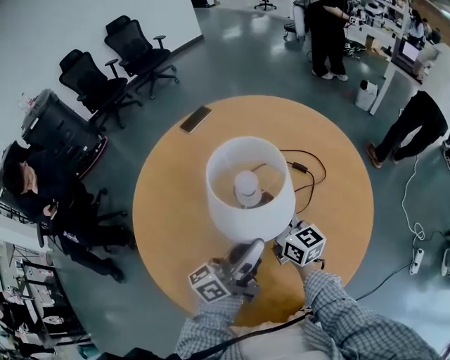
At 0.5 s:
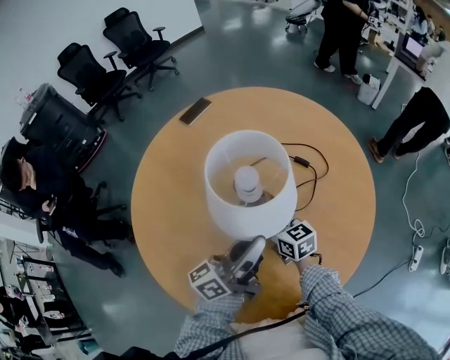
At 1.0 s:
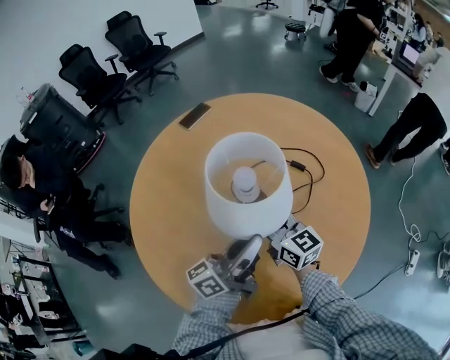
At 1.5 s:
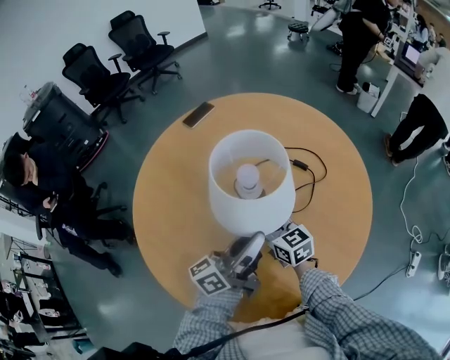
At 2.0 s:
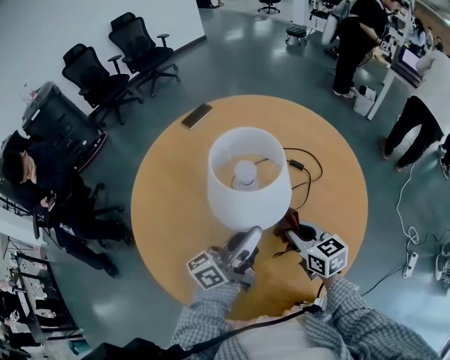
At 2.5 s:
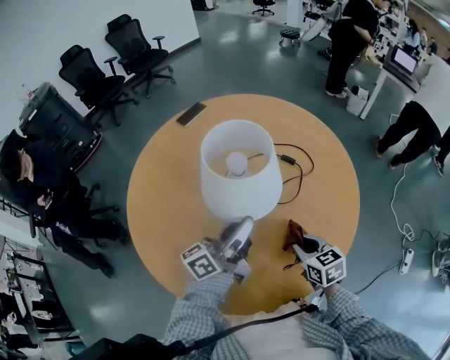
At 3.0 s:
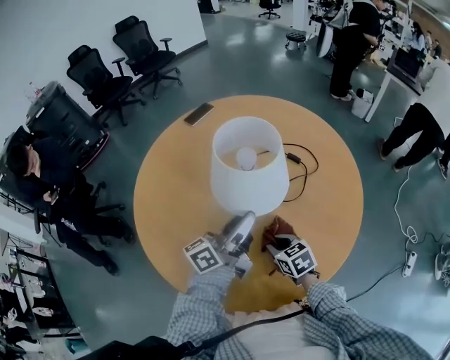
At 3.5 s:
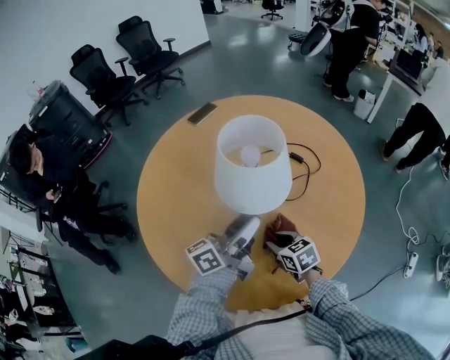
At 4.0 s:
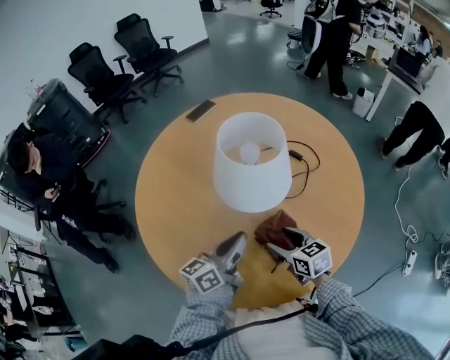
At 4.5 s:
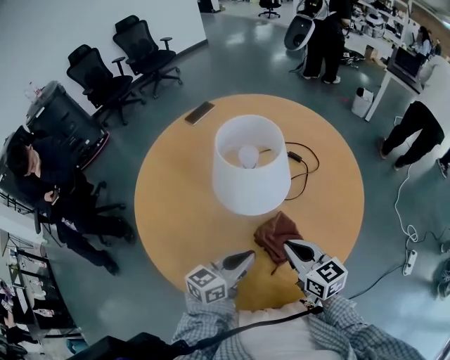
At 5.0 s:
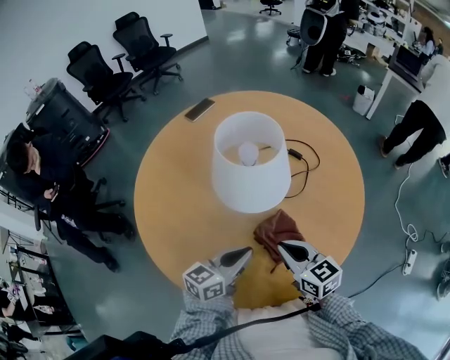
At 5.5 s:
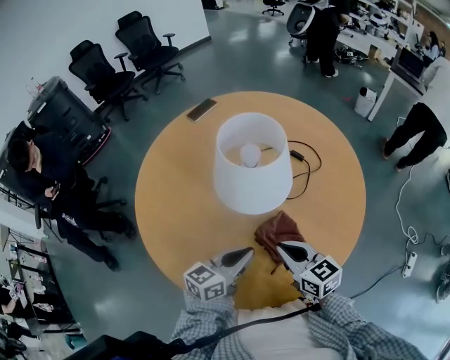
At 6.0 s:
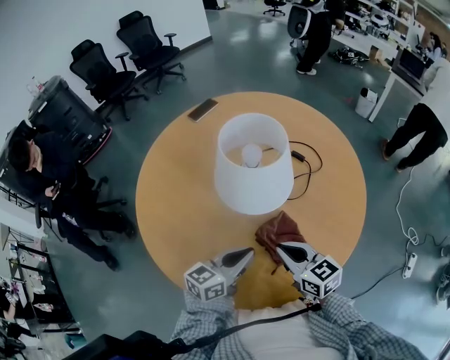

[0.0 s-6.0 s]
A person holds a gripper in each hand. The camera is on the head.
0.0 to 2.0 s: The right gripper swings up and down, some 10 cm each way, with 2 reversals, and changes its angle by approximately 20 degrees.
2.0 to 4.0 s: The right gripper travels backward by approximately 5 cm, and opens its fingers. Meanwhile the left gripper heads downward and backward, covering roughly 10 cm, rotates some 20 degrees, and opens, then closes again.
4.0 to 6.0 s: The right gripper goes some 5 cm upward, and closes up. Meanwhile the left gripper ends up roughly 5 cm from where it was, and changes its angle by roughly 20 degrees.

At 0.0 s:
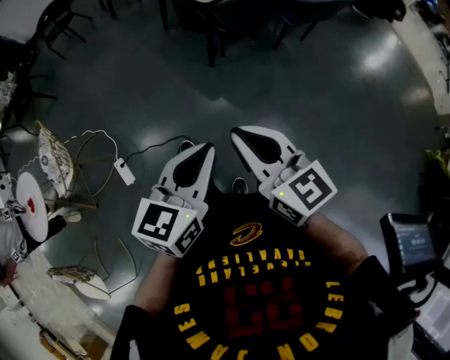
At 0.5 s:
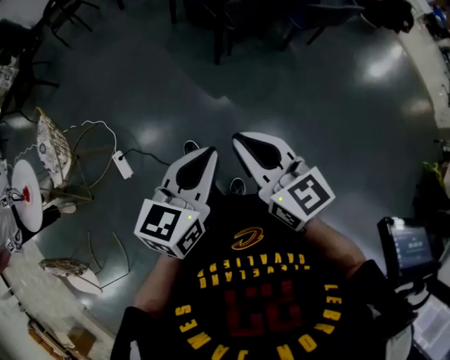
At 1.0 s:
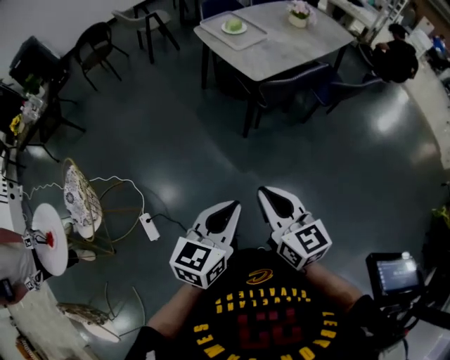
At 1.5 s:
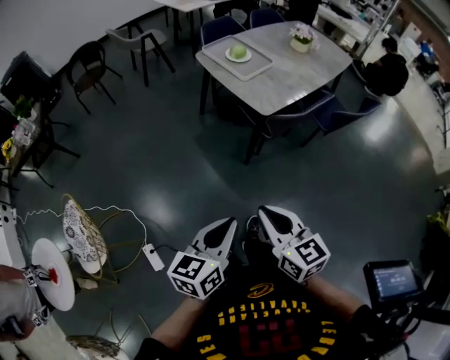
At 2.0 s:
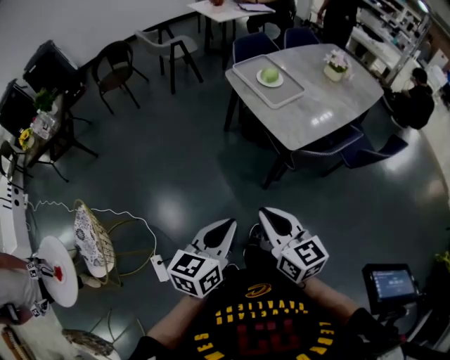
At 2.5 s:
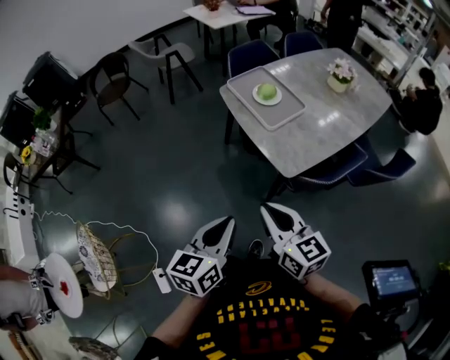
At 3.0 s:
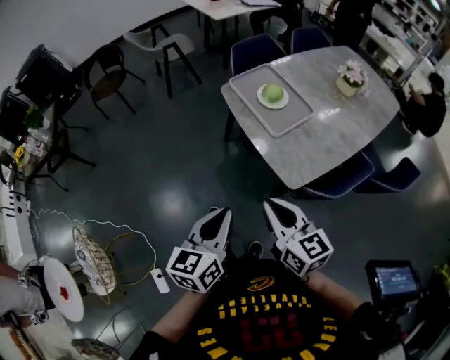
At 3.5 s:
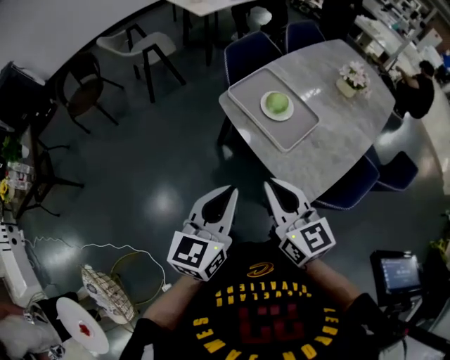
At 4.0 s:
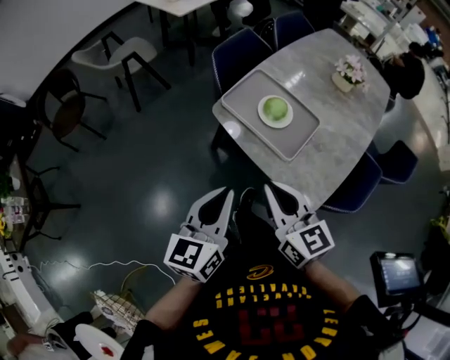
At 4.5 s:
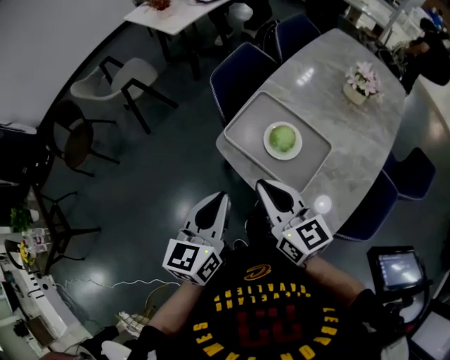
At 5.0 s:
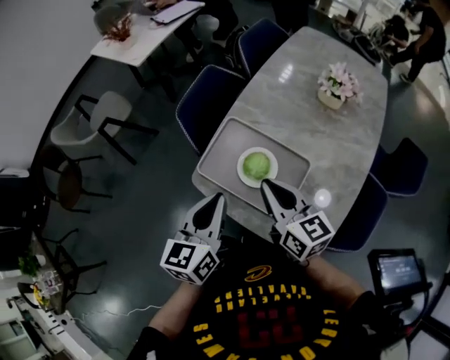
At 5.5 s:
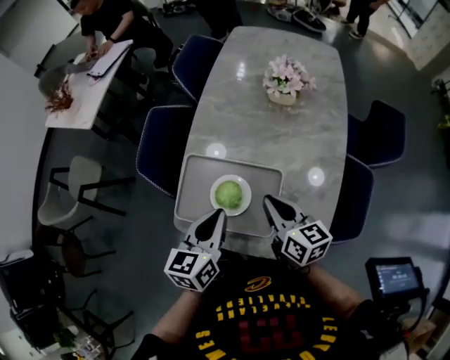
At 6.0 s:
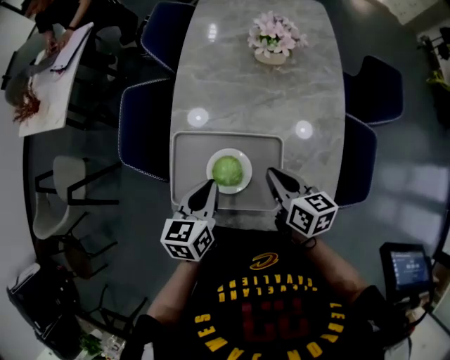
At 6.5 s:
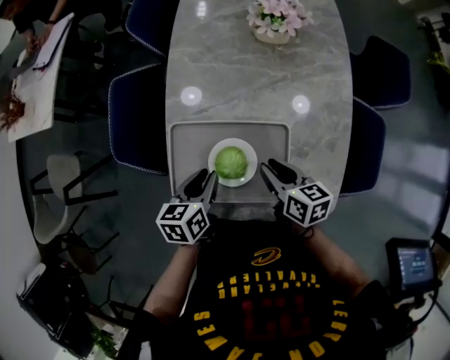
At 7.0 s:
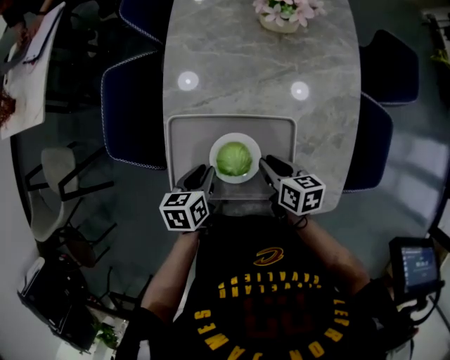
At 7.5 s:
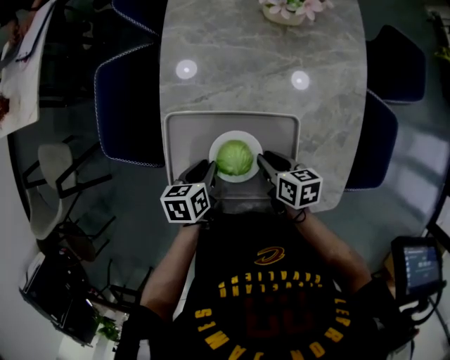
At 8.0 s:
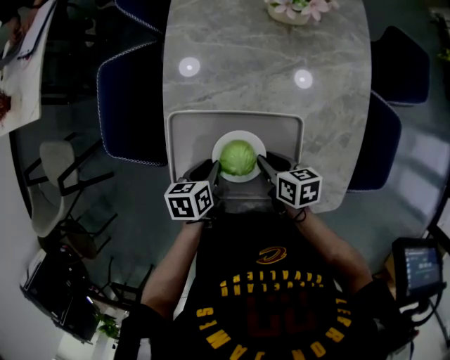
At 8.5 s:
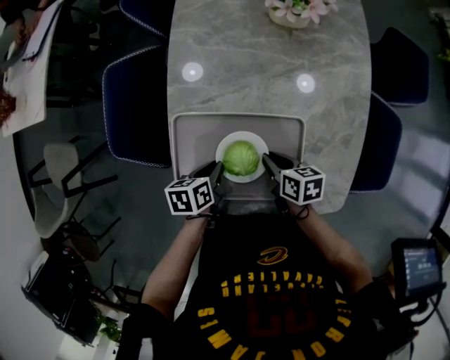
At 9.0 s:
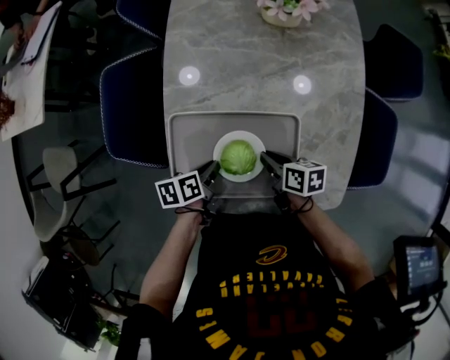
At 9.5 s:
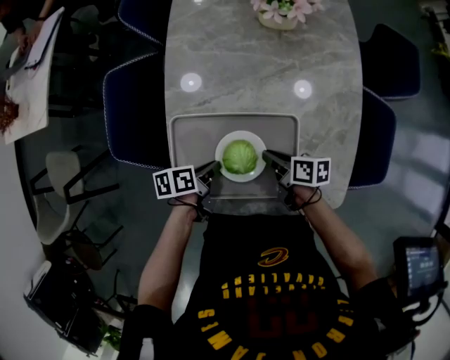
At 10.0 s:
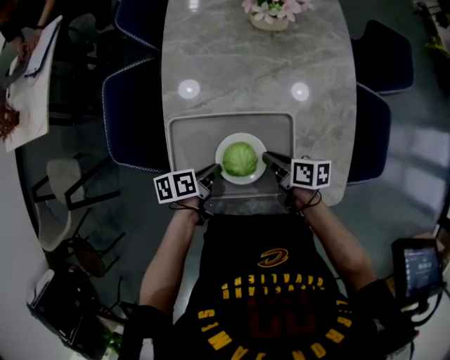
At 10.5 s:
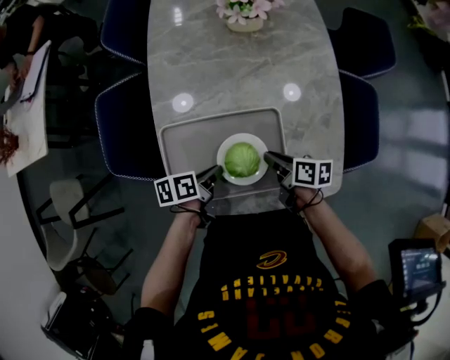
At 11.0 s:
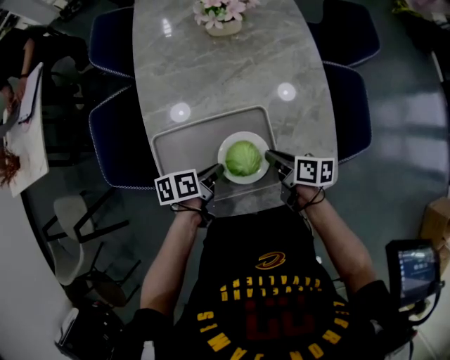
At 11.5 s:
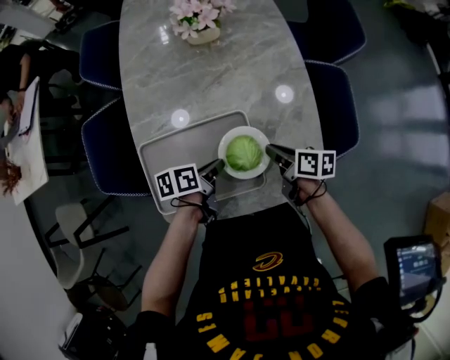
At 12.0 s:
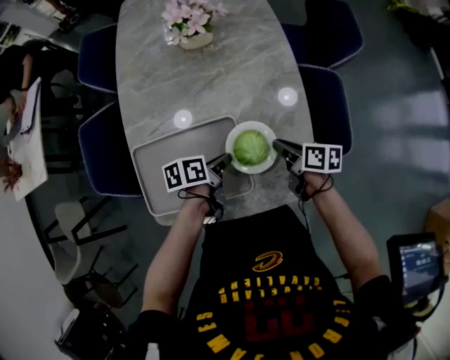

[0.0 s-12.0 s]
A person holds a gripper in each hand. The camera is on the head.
0.0 to 2.0 s: The pair of grippers is taken forward and to the left, approximately 40 cm.
2.0 to 4.0 s: The two grippers travel together, forward, about 50 cm.
4.0 to 6.0 s: The left gripper moves roughly 40 cm, and turns by about 40 degrees, while the right gripper shifts by about 35 cm, and changes its angle by some 50 degrees.
6.0 to 8.0 s: The grippers both shift downward by roughly 15 cm. The left gripper turns by some 30 degrees, and opens. The right gripper rotates about 20 degrees, and opens its fingers.
8.0 to 10.0 s: The left gripper swivels about 20 degrees.
10.0 to 12.0 s: Both grippers move to the right, about 20 cm.

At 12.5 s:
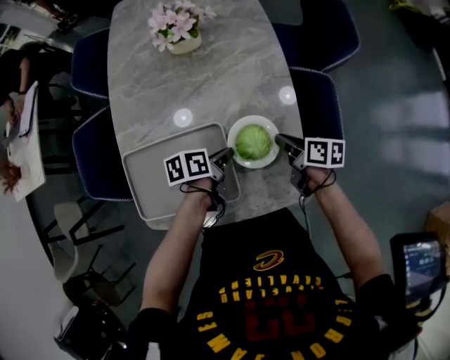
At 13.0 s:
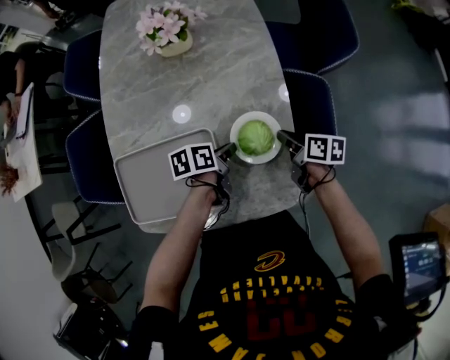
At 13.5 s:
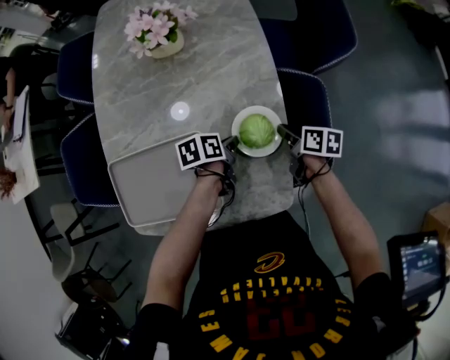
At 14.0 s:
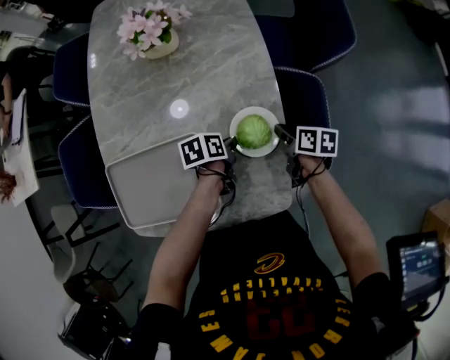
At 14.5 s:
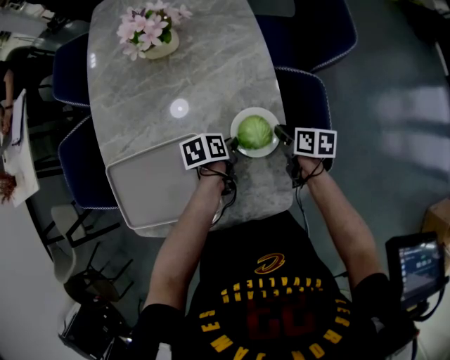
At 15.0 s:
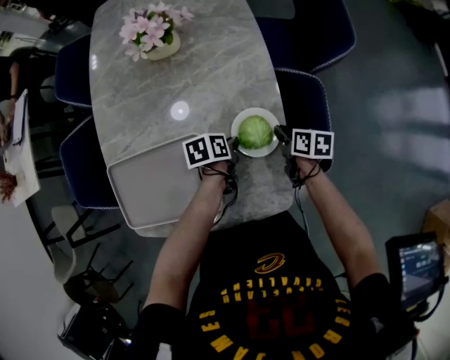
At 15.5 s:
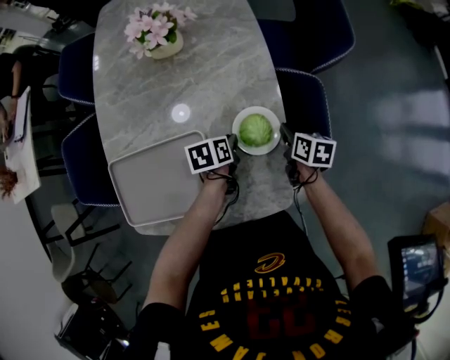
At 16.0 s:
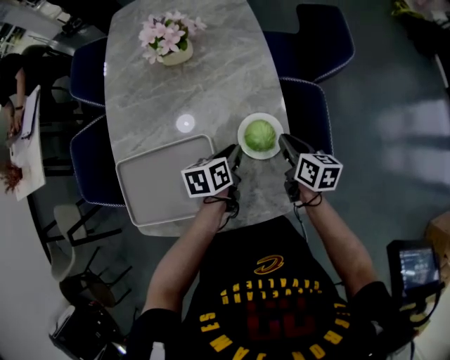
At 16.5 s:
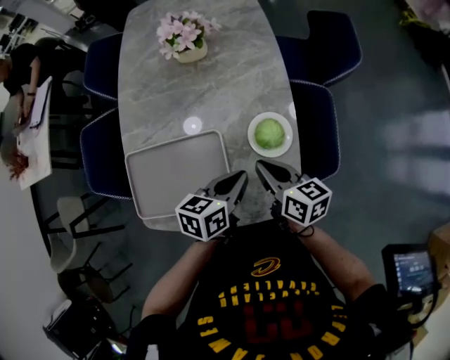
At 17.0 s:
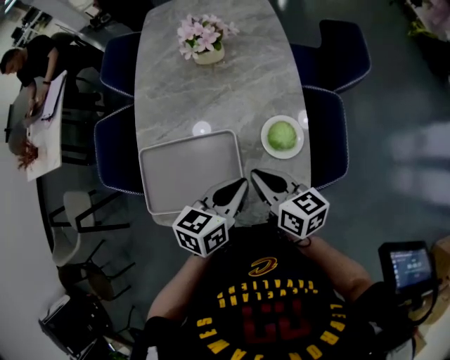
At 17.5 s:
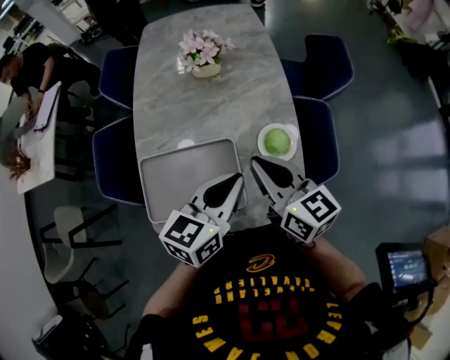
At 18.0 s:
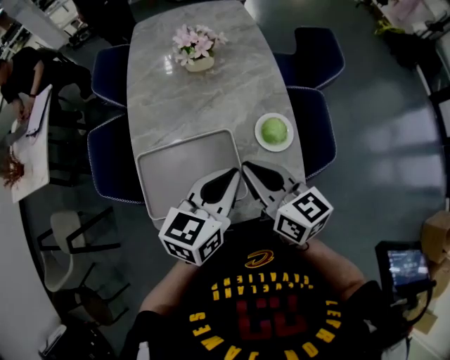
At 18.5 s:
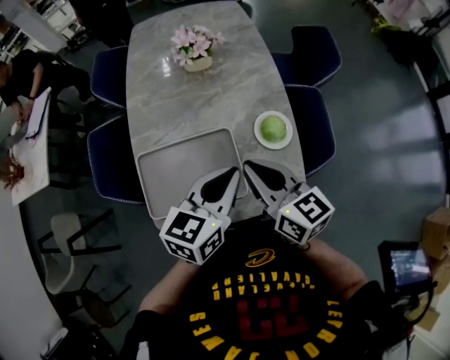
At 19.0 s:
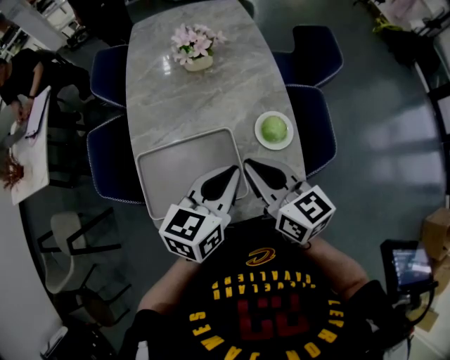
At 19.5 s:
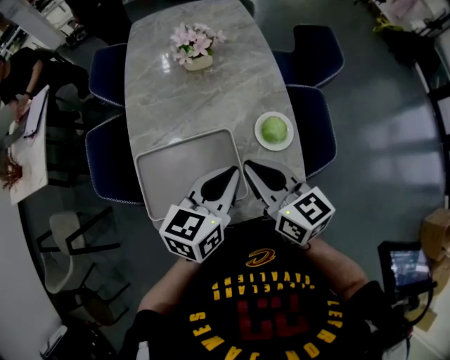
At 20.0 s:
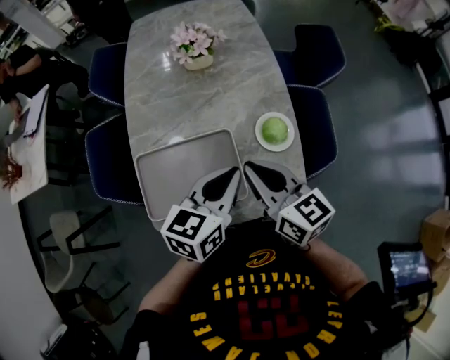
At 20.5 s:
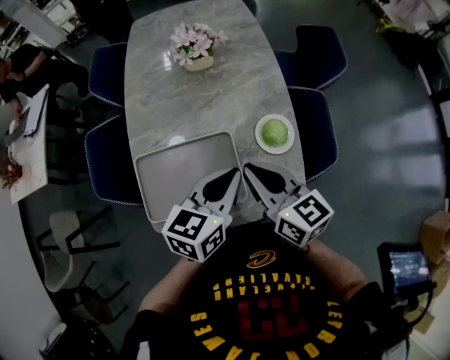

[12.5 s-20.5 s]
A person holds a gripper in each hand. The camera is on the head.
12.5 to 14.5 s: Both grippers travel together downward, to the right and forward, roughly 10 cm.
14.5 to 16.5 s: The right gripper goes some 25 cm upward, to the left and backward, and swivels some 30 degrees; the left gripper moves upward and backward, approximately 20 cm, and rotates some 30 degrees.
16.5 to 18.5 s: Both grippers move upward and to the left, some 15 cm. The left gripper turns by approximately 20 degrees.
18.5 to 20.5 s: The grippers stay close to where they were, moving slightly.

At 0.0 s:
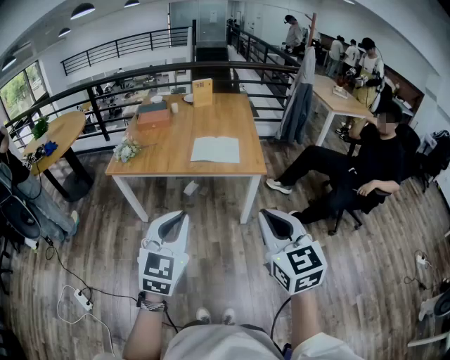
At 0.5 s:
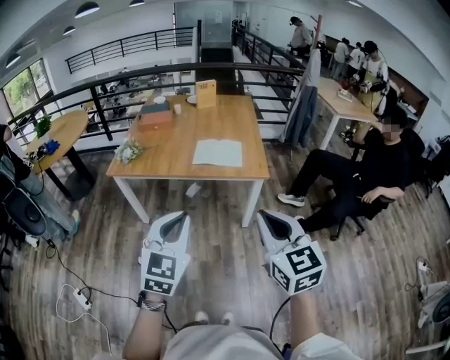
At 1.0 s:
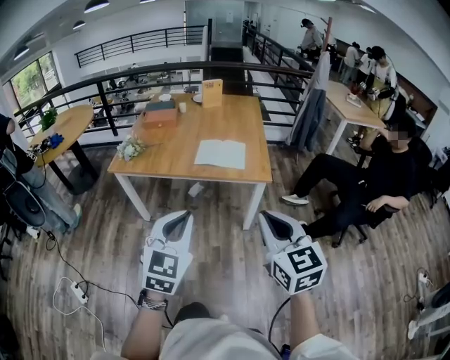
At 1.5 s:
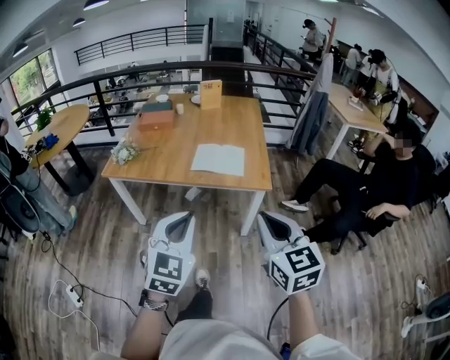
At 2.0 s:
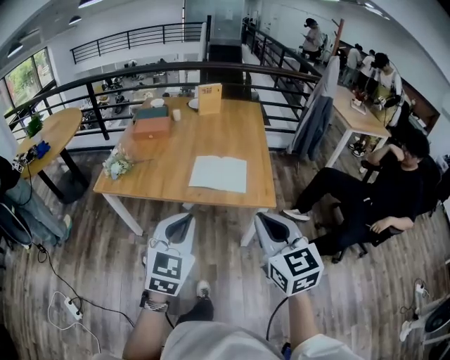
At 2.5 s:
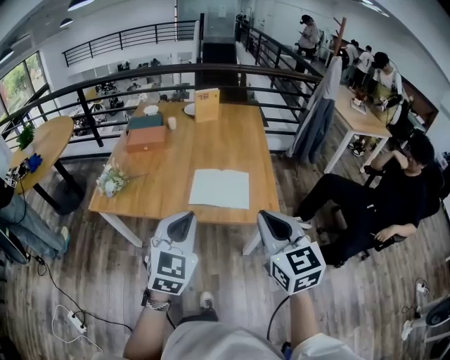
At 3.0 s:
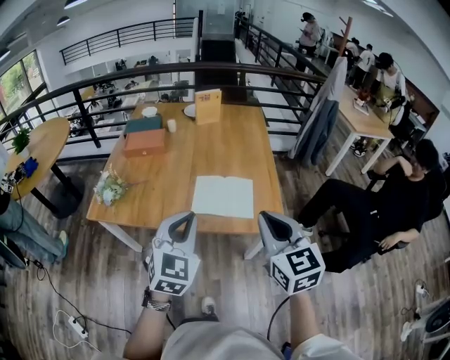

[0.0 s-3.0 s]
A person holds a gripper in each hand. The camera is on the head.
0.0 to 1.5 s: The grippers both shift forward by about 10 cm.
1.5 to 3.0 s: The two grippers go roughly 30 cm forward.
